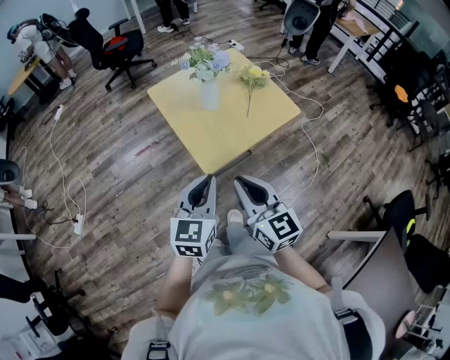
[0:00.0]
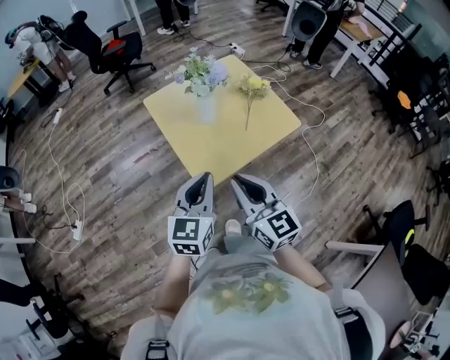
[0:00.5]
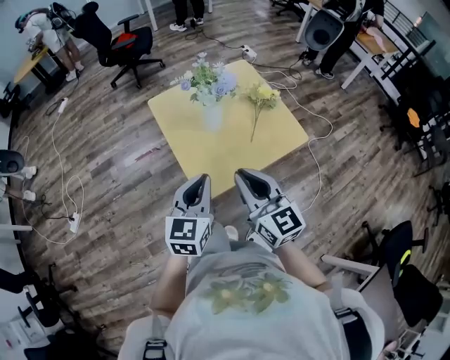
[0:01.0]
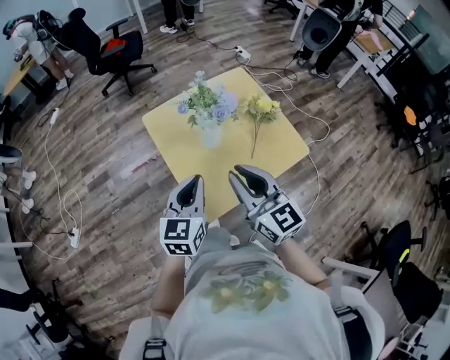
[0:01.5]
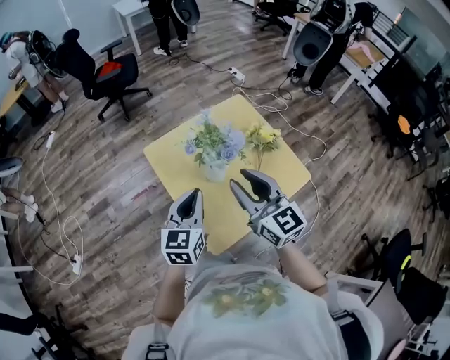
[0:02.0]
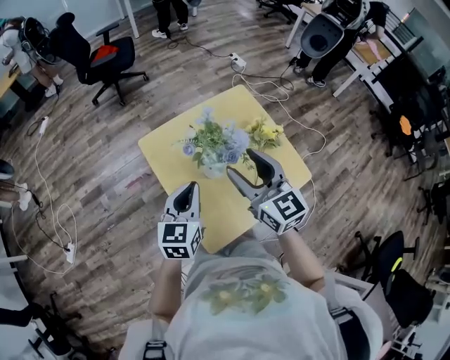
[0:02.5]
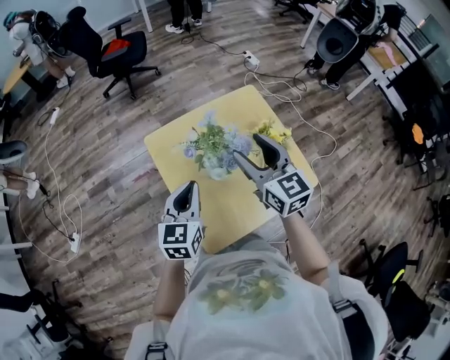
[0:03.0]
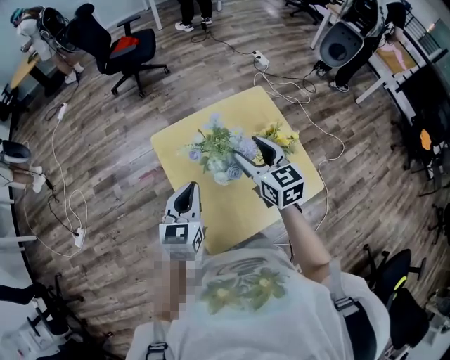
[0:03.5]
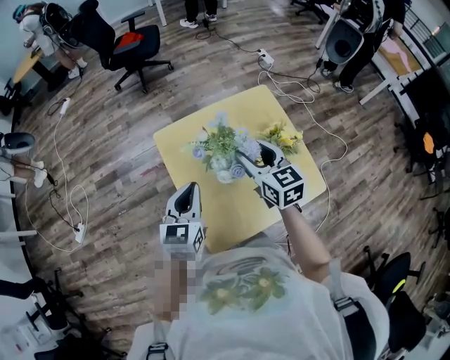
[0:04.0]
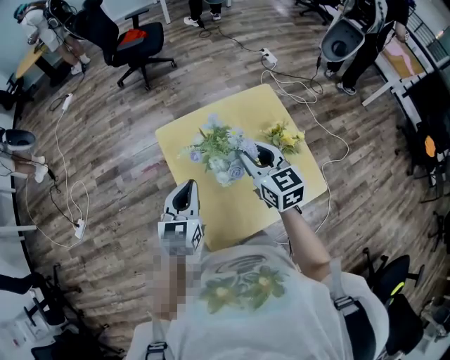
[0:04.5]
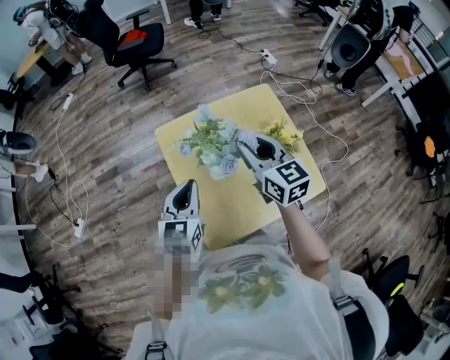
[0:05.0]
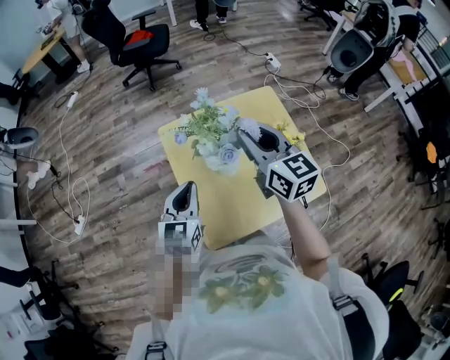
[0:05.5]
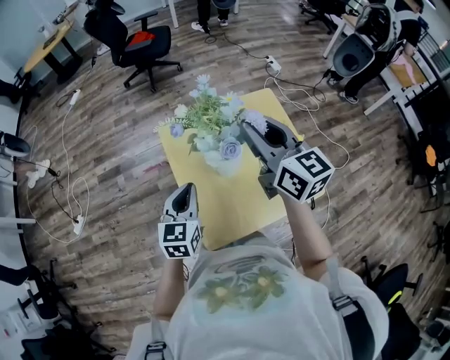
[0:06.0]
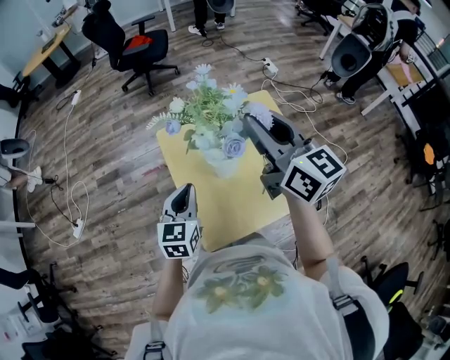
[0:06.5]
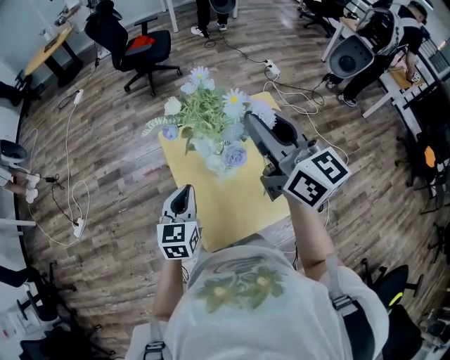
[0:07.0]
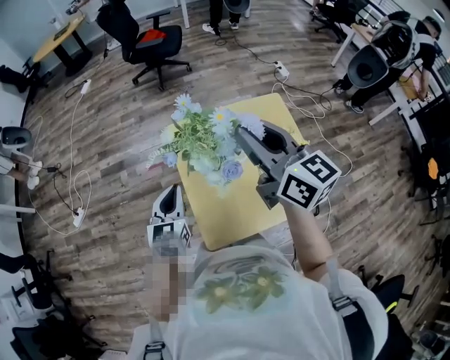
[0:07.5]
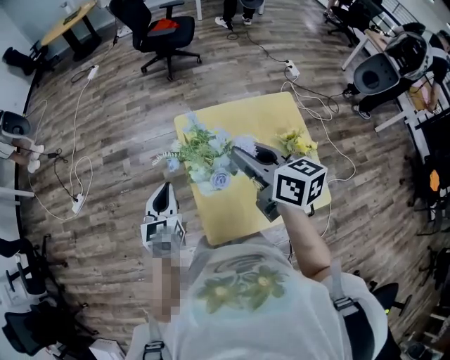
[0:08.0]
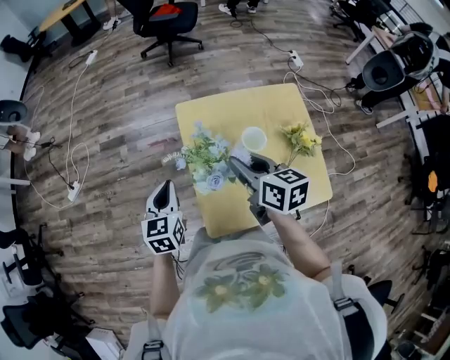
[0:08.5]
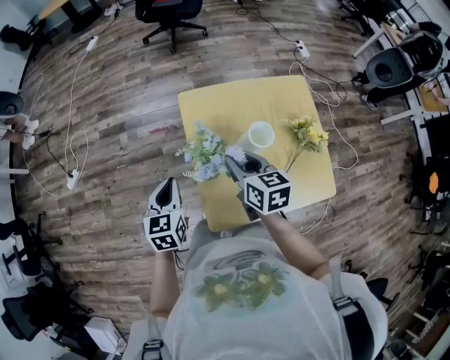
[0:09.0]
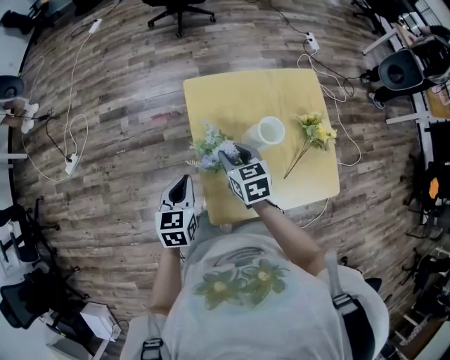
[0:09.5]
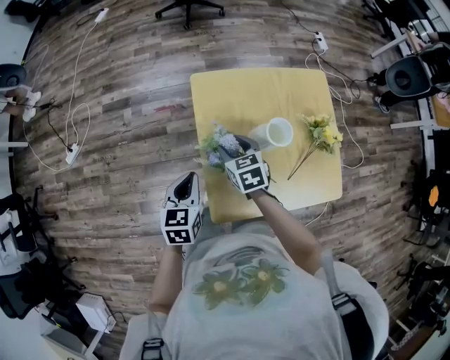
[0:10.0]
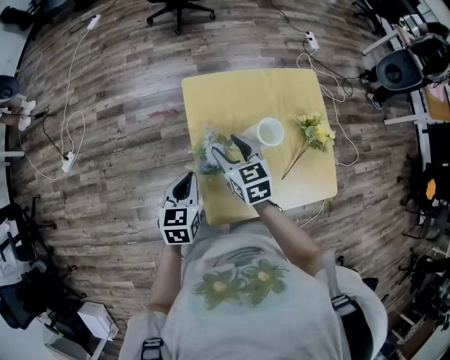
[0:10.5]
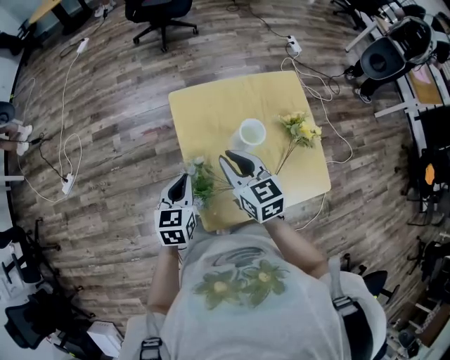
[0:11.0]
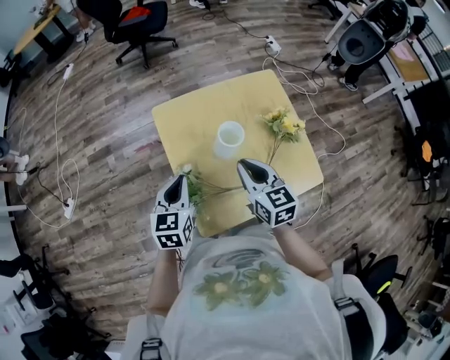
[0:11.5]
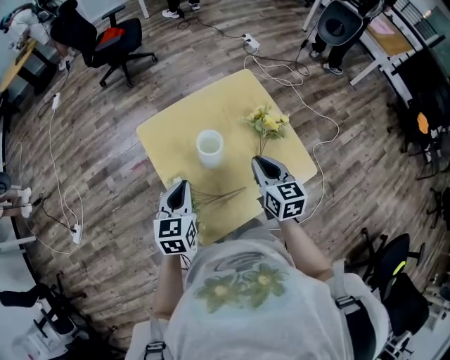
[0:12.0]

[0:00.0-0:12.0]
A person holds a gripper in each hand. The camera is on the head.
0.0 to 2.0 s: The two grippers go roughly 40 cm forward.
2.0 to 4.0 s: The left gripper shifts roughly 10 cm forward, while the right gripper is displaced forward and downward by roughly 20 cm, and opens its fingers.
4.0 to 6.0 s: The right gripper moves upward, approximately 15 cm, and closes.
6.0 to 8.0 s: The right gripper heads to the left and downward, covering about 10 cm, and changes its angle by some 30 degrees. The left gripper shifts roughly 10 cm to the left.
8.0 to 10.0 s: The left gripper travels downward by approximately 10 cm. Meanwhile the right gripper travels downward by roughly 30 cm, and points its fingers some 30 degrees further downward.
10.0 to 12.0 s: The left gripper moves to the right and upward, approximately 15 cm, and changes its angle by approximately 20 degrees. Meanwhile the right gripper shifts some 30 cm to the right and upward, turns by roughly 40 degrees, and closes its fingers.

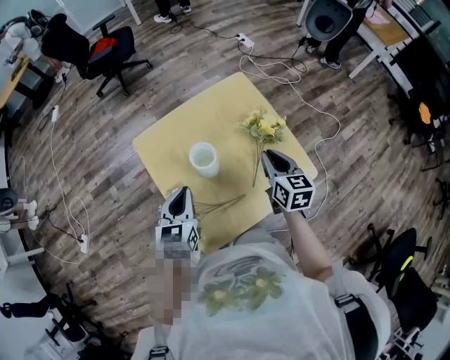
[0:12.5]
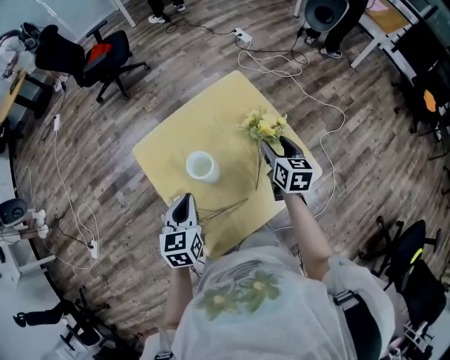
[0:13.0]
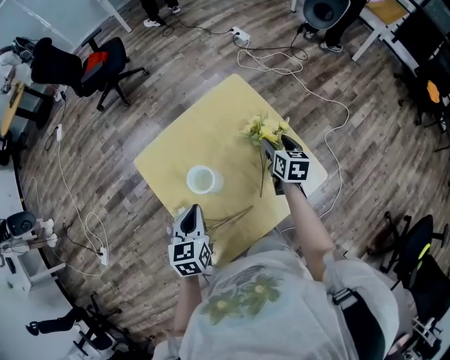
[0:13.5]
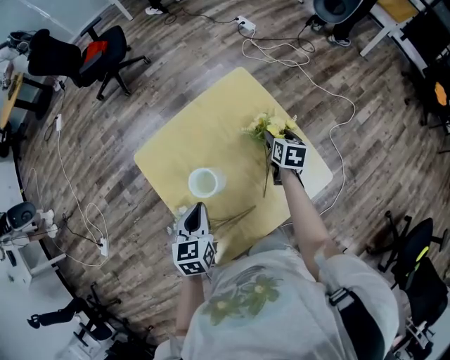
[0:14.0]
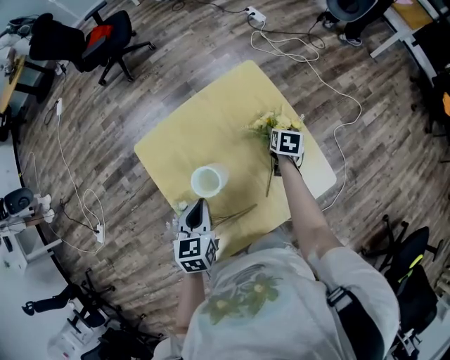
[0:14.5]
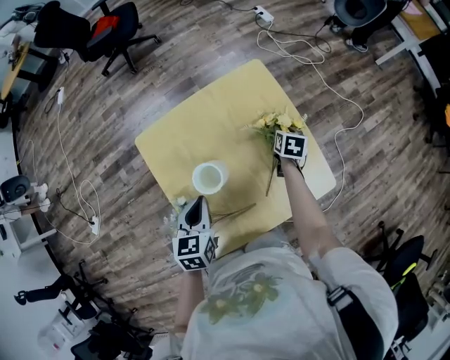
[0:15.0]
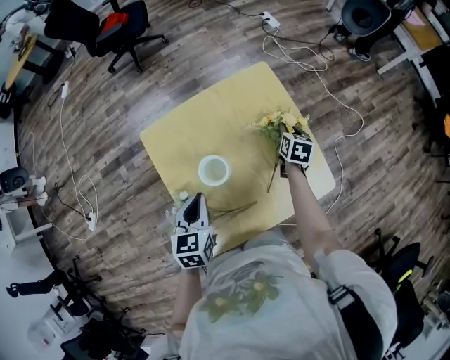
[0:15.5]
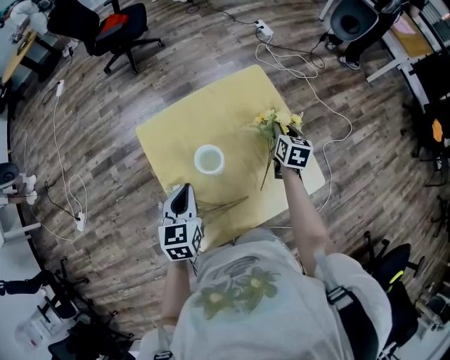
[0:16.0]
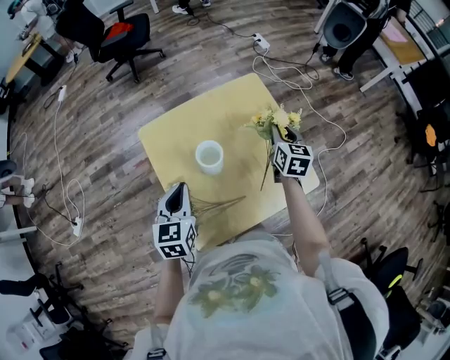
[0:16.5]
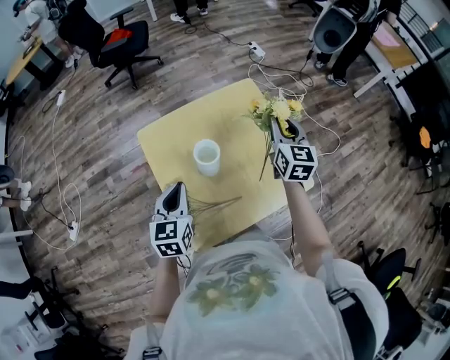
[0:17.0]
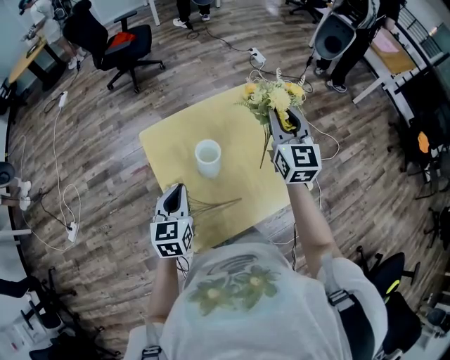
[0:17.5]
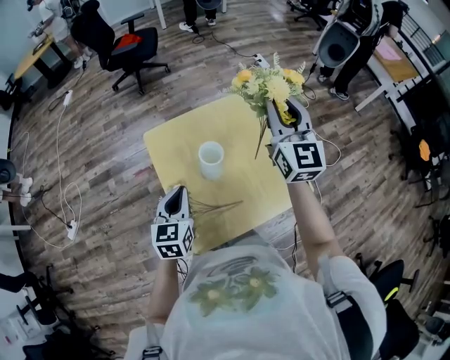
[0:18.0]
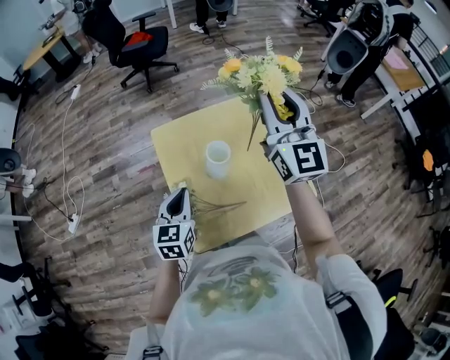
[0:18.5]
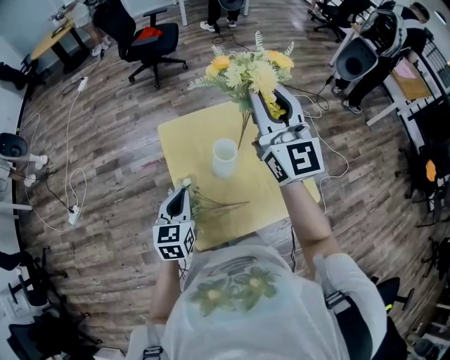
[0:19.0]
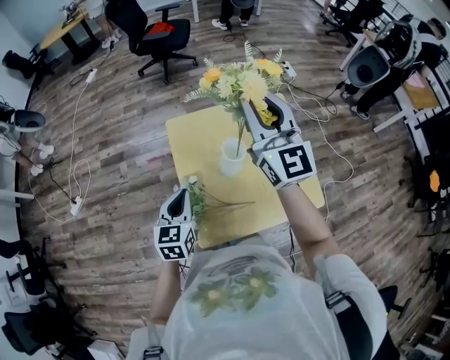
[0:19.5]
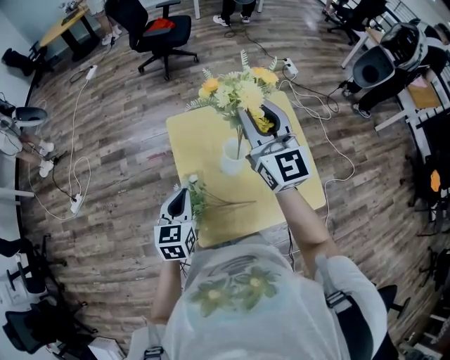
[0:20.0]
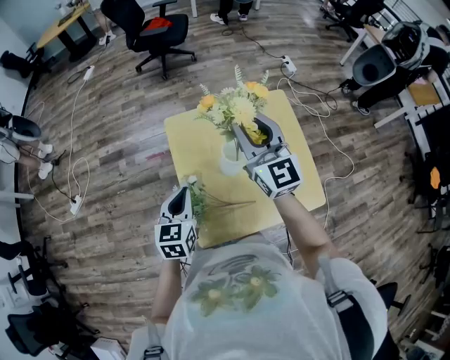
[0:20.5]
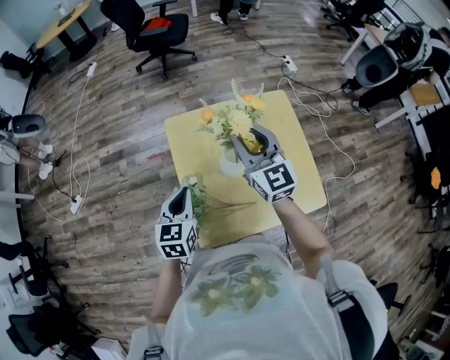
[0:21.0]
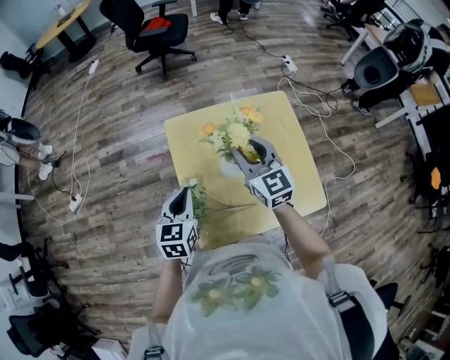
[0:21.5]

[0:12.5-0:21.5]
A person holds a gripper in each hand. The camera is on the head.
12.5 to 14.5 s: The left gripper travels forward, downward and to the right by about 10 cm. Meanwhile the right gripper goes roughly 30 cm downward and forward, changes its angle by some 30 degrees, and opens its fingers.
14.5 to 17.0 s: The left gripper heads upward, backward and to the left, covering approximately 15 cm. The right gripper shifts about 30 cm upward, angles its fingers upward, by some 40 degrees, and closes its fingers.
17.0 to 19.5 s: The left gripper heads to the left and backward, covering roughly 10 cm; the right gripper is displaced to the left and upward by approximately 30 cm, and turns by some 40 degrees.
19.5 to 21.5 s: The right gripper shifts some 20 cm downward, and rotates roughly 20 degrees.

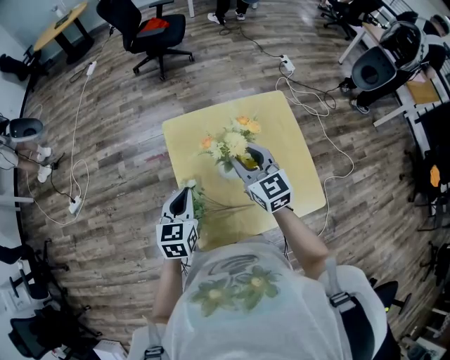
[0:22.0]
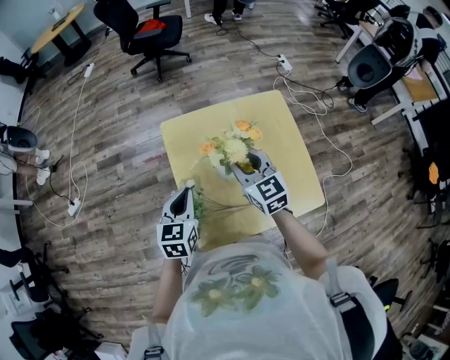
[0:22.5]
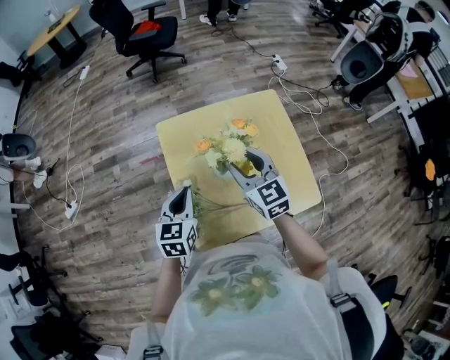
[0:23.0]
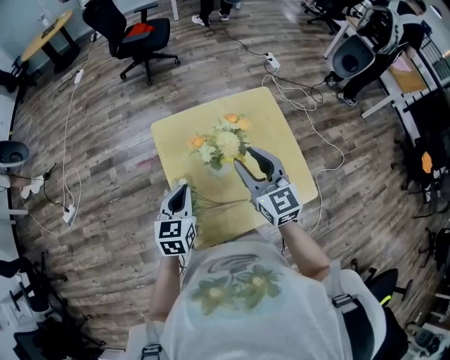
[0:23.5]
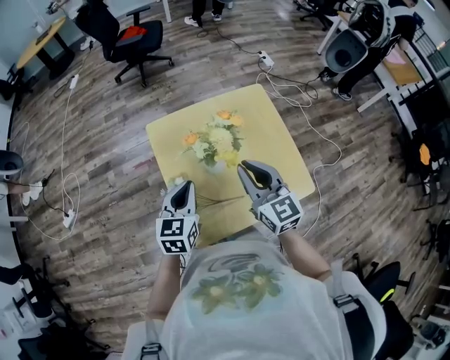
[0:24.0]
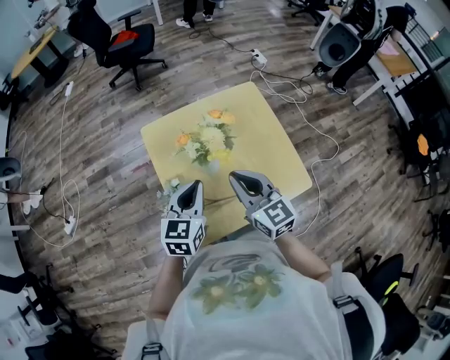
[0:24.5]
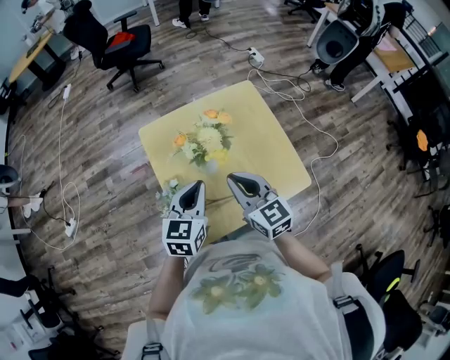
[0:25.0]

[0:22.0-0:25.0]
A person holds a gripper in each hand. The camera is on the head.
22.0 to 23.5 s: The right gripper travels backward by approximately 5 cm.
23.5 to 25.0 s: The right gripper shifts some 5 cm backward, and closes its fingers. Meanwhile the left gripper shifts approximately 10 cm to the right.

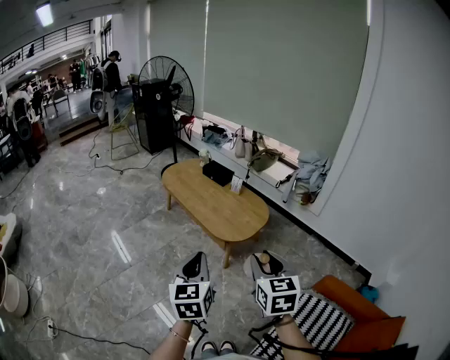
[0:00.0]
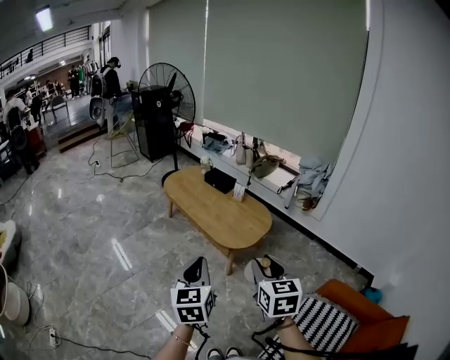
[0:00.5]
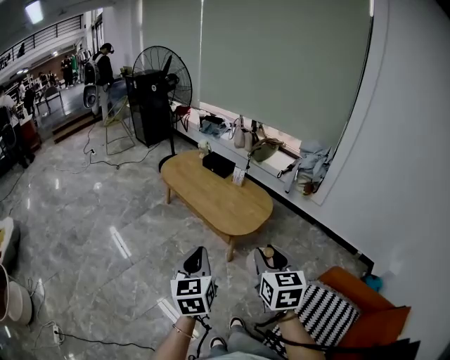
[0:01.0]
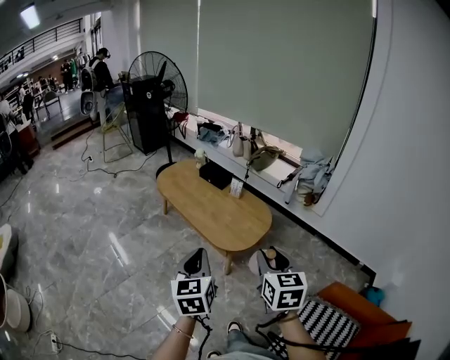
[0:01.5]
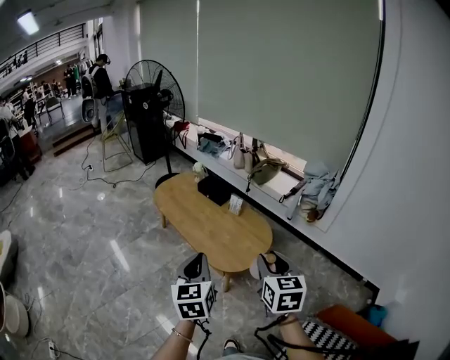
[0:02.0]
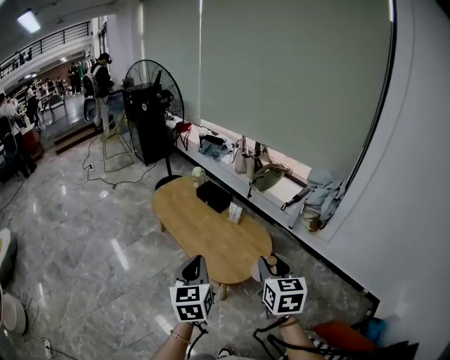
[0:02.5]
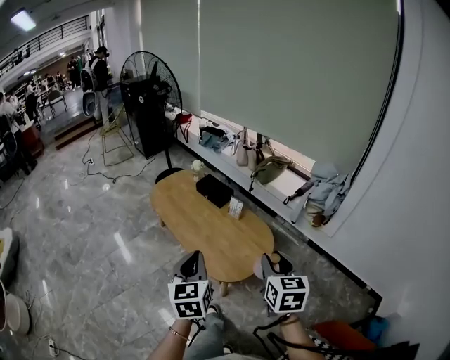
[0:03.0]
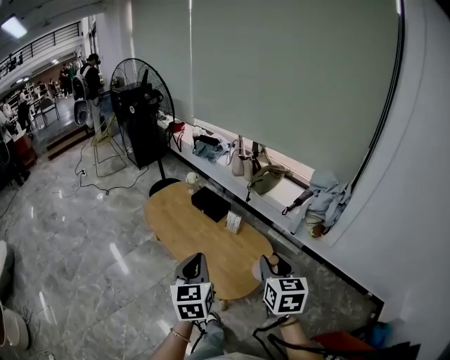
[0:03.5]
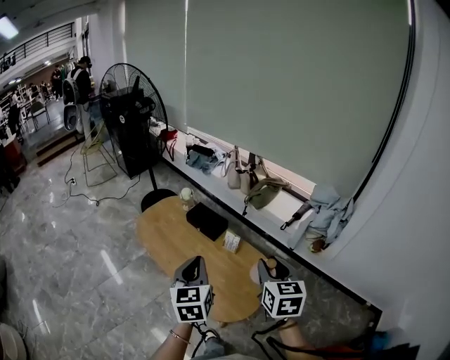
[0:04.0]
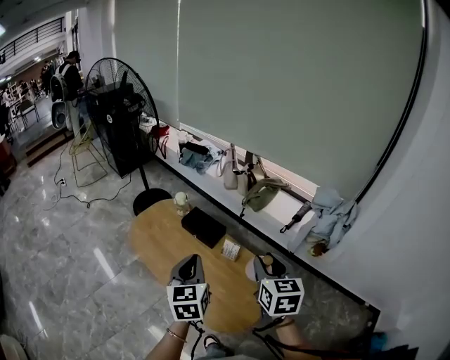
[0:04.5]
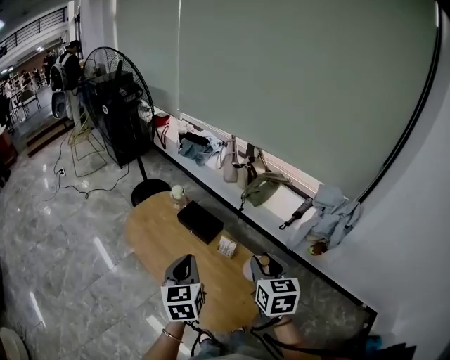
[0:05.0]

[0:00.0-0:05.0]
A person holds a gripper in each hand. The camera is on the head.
0.0 to 2.5 s: Both grippers move forward, approximately 30 cm.
2.5 to 5.0 s: The grippers both shift forward by approximately 35 cm.
